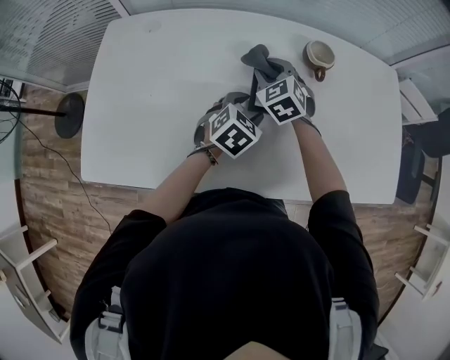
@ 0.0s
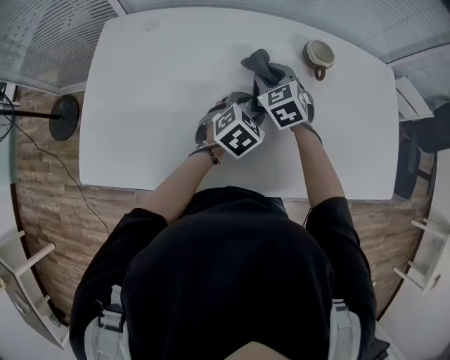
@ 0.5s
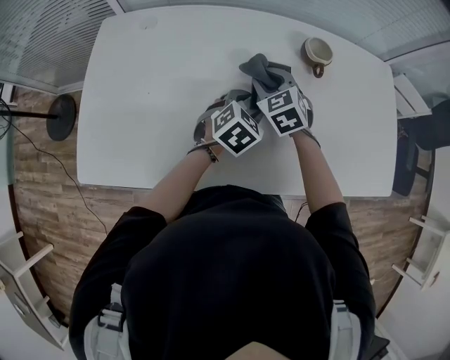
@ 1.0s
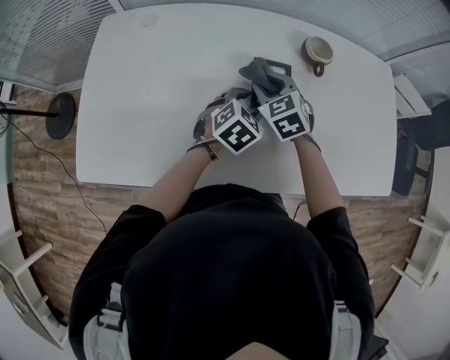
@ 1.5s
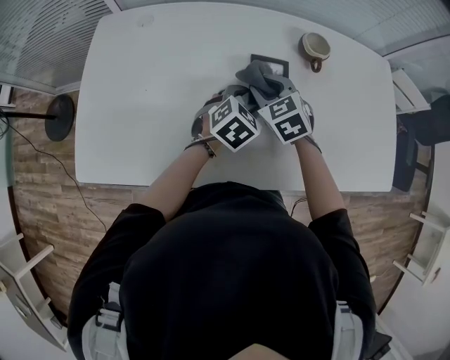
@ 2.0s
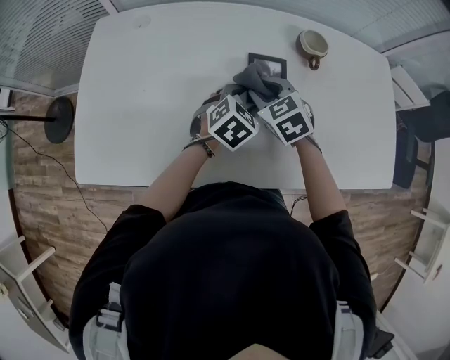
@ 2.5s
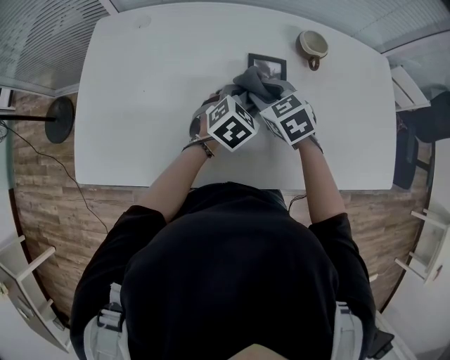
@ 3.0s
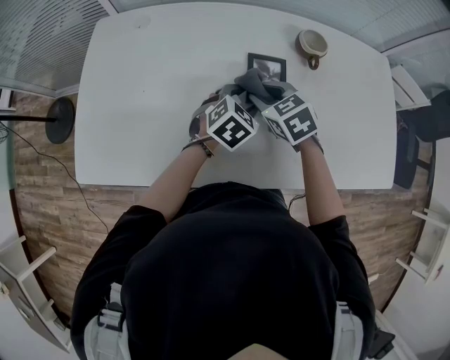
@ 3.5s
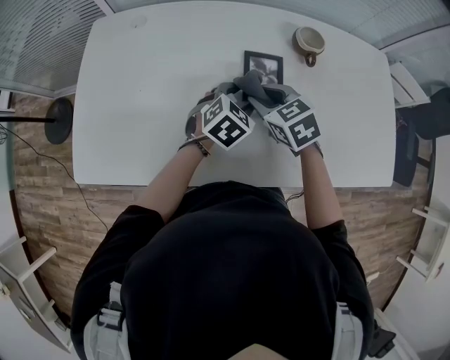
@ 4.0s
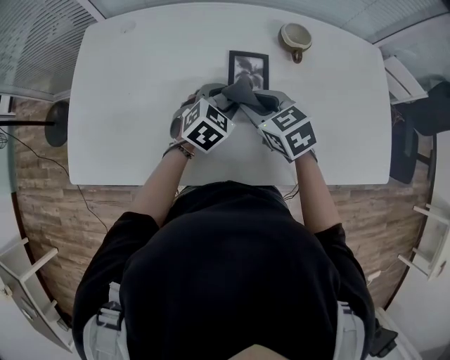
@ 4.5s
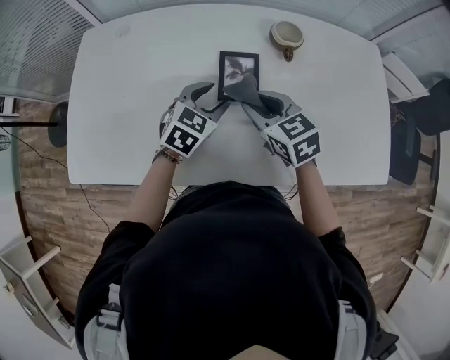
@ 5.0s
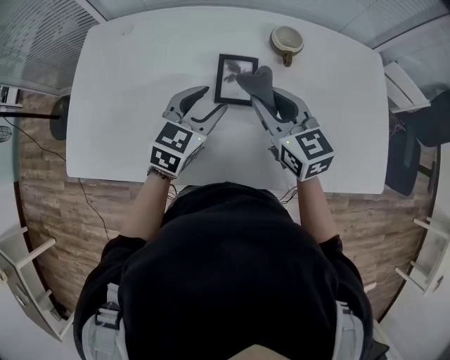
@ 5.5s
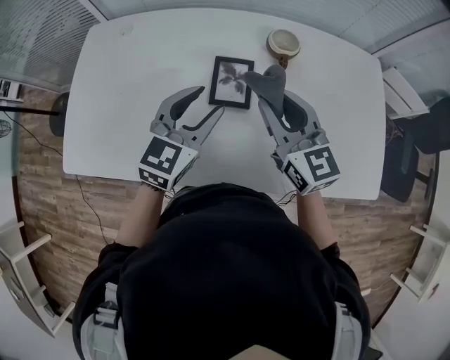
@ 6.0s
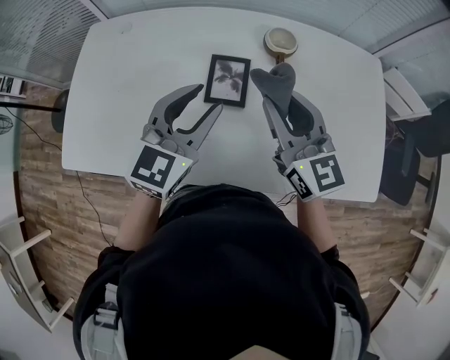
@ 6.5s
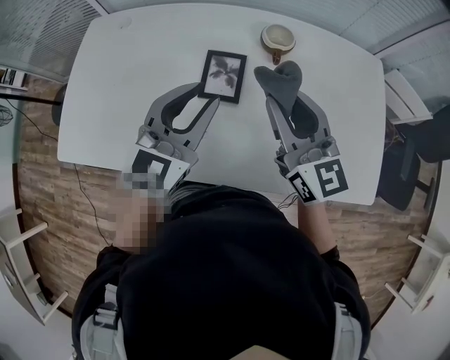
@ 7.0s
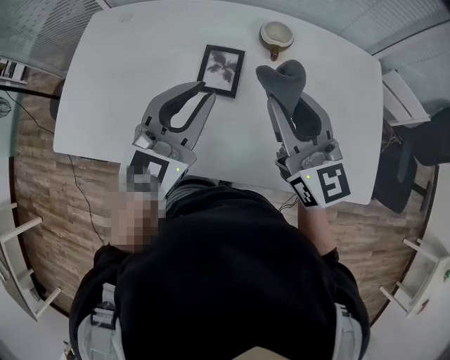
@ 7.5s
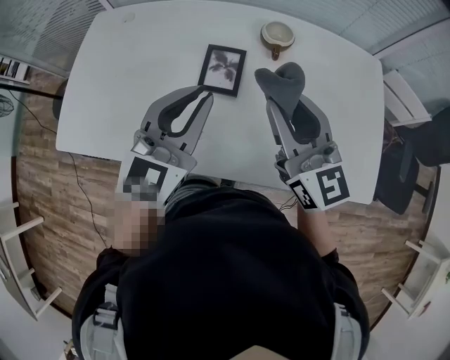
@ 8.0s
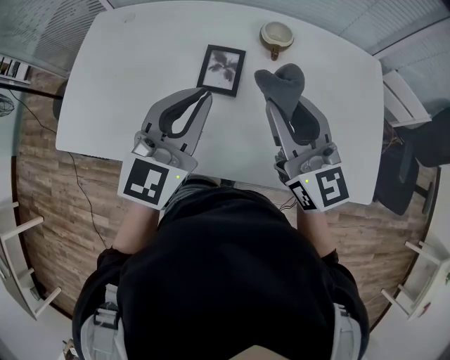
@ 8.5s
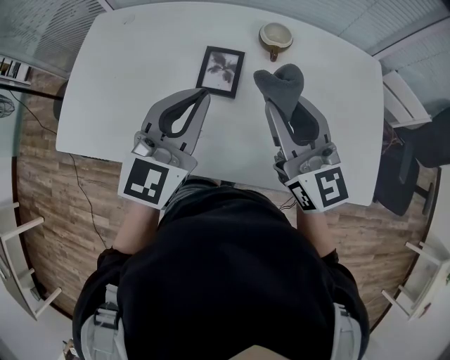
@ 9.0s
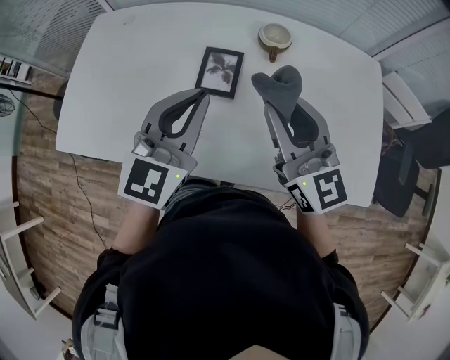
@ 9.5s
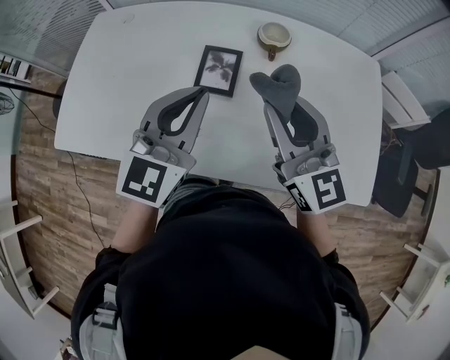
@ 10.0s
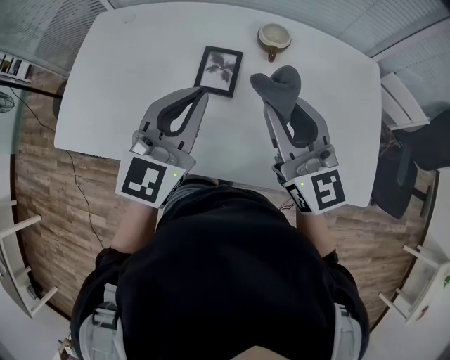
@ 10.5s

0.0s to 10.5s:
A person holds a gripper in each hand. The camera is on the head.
0.0s to 2.0s: The right gripper heads backward, covering some 10 cm.
2.0s to 4.0s: There are only small adjustments of the grippers.
4.0s to 6.5s: The right gripper goes roughly 20 cm upward and to the right, and tilts its fingers roughly 40 degrees upward. Meanwhile the left gripper moves upward, roughly 20 cm, and angles its fingers upward, by approximately 30 degrees.
6.5s to 8.5s: The right gripper changes place by some 5 cm; the left gripper changes place by roughly 5 cm, and closes.
8.5s to 10.5s: Both grippers stay about where they are.

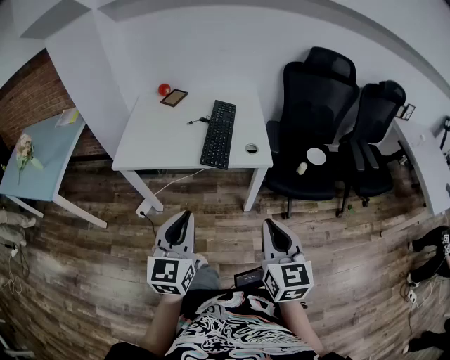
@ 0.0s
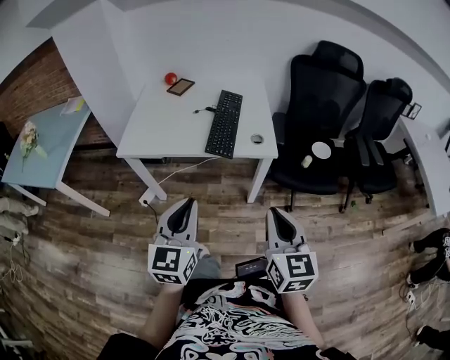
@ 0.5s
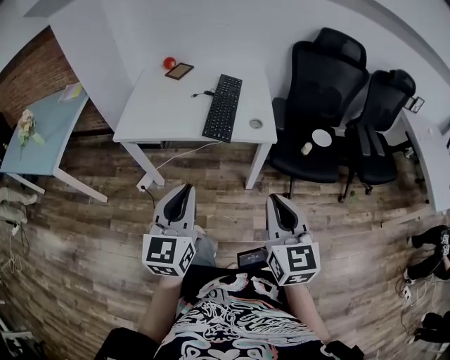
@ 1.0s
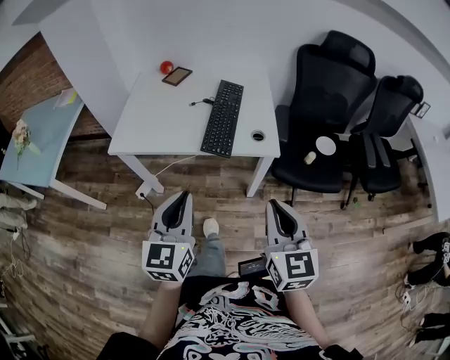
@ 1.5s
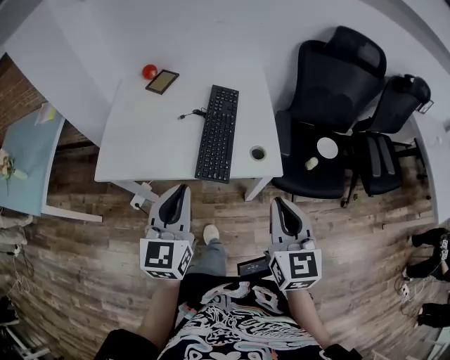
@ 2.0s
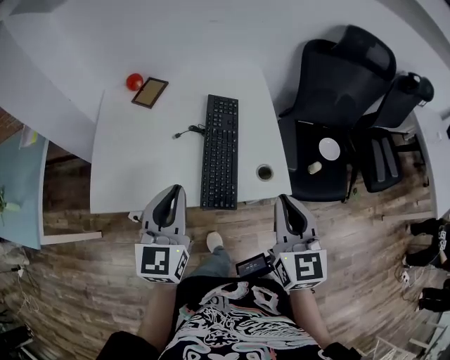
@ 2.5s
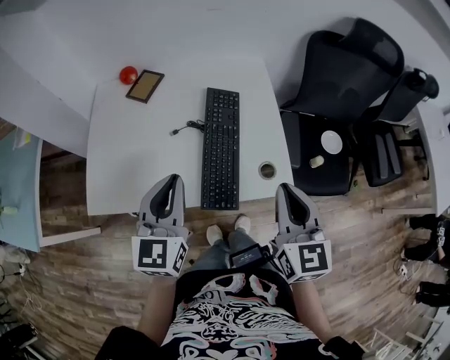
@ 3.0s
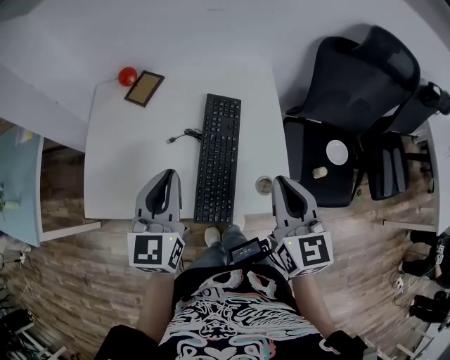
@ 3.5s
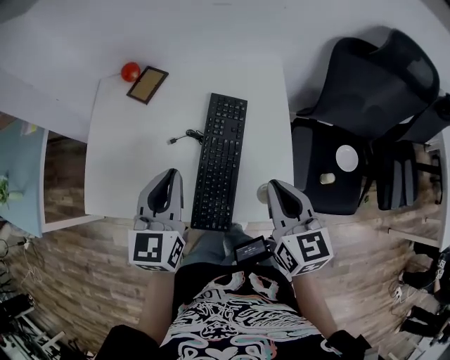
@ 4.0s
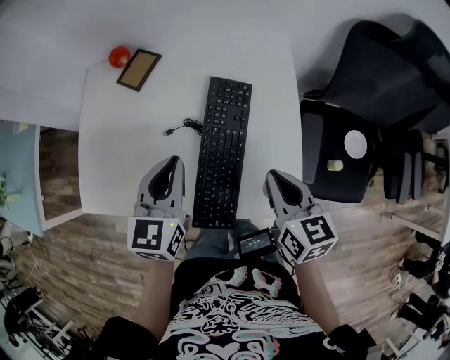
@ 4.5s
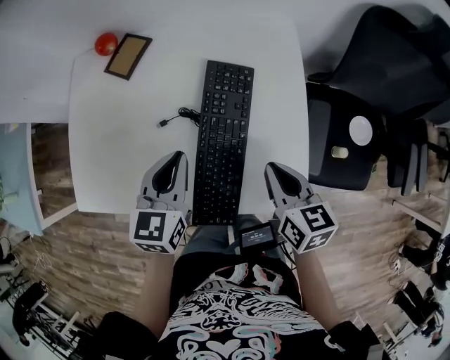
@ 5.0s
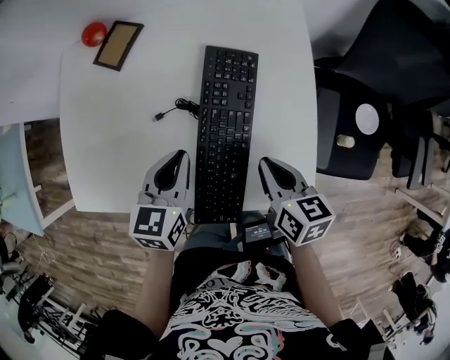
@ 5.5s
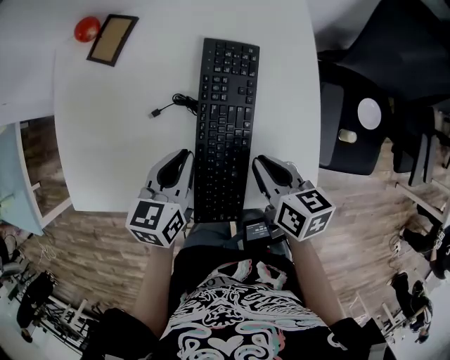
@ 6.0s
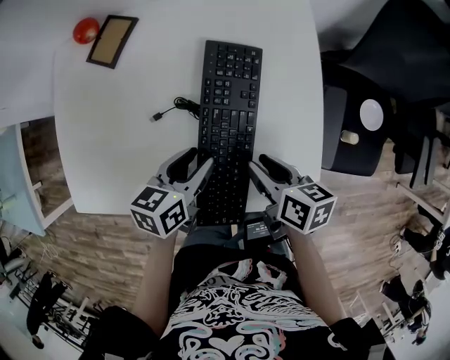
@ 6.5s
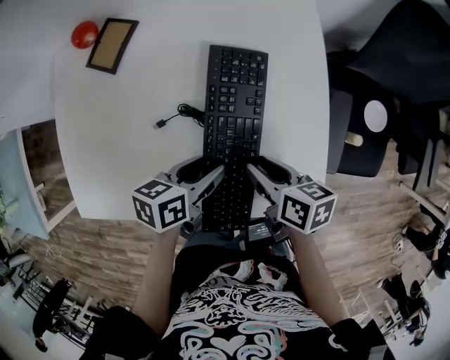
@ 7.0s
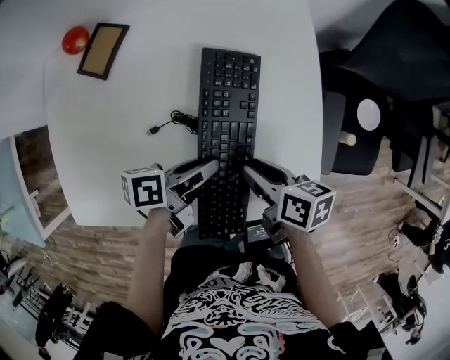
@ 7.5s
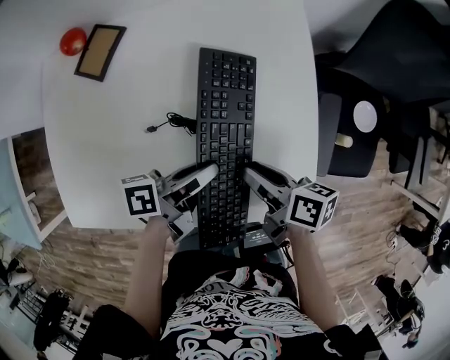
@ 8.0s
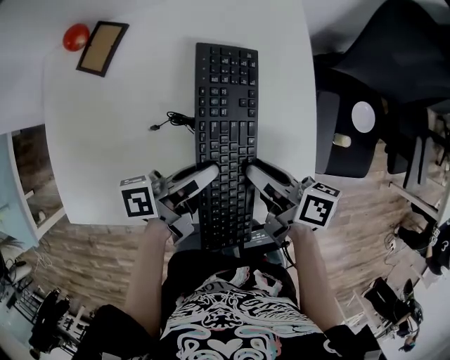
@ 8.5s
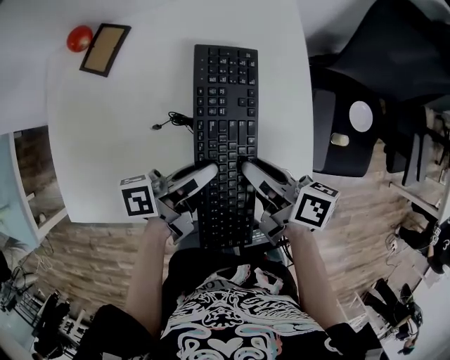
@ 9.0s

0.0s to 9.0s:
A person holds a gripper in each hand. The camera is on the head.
0.0s to 2.0s: The two grippers go roughly 20 cm forward.
2.0s to 4.5s: Both grippers move forward, about 30 cm. The right gripper rotates some 30 degrees.
4.5s to 7.0s: The right gripper shifts roughly 15 cm downward and to the left, swivels approximately 40 degrees, and opens its fingers; the left gripper shifts about 15 cm downward, rotates some 50 degrees, and opens up.
7.0s to 9.0s: The right gripper changes its angle by roughly 20 degrees. Meanwhile the left gripper angles its fingers upward, by roughly 30 degrees, and closes.

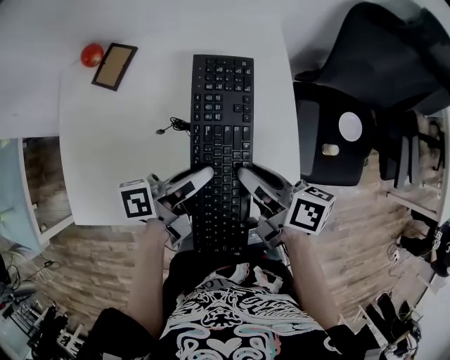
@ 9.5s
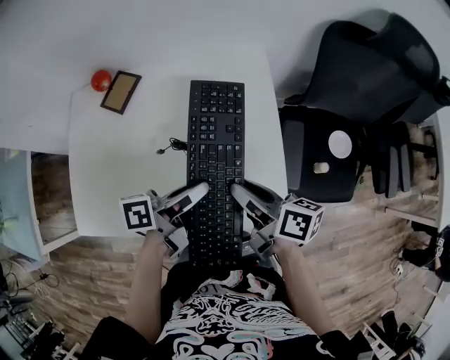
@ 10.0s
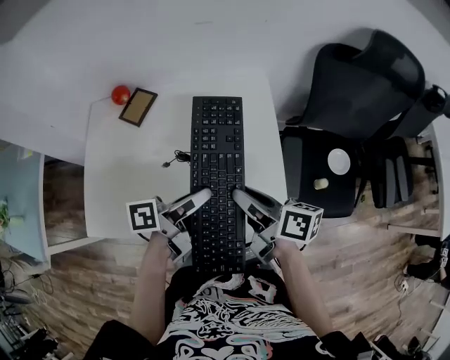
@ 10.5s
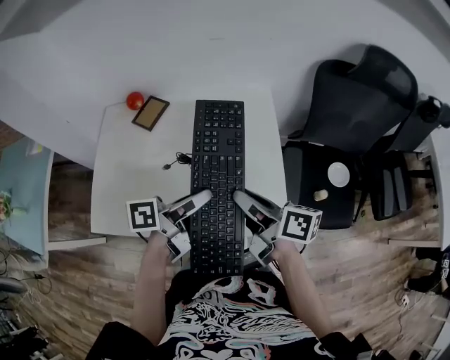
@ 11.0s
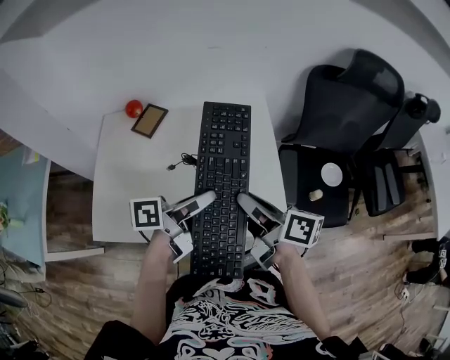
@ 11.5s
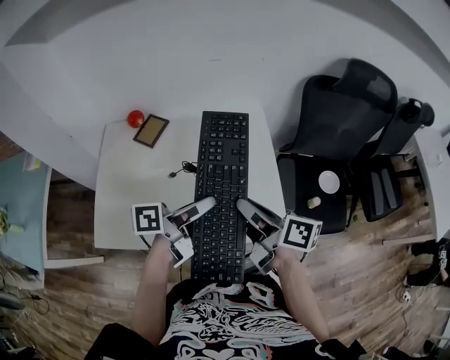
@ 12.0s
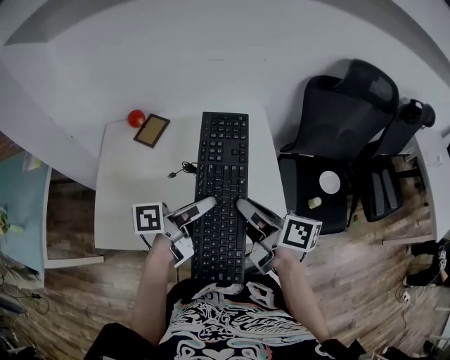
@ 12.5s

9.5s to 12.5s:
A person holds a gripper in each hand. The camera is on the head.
9.5s to 12.5s: The grippers stay close to where they were, moving slightly.

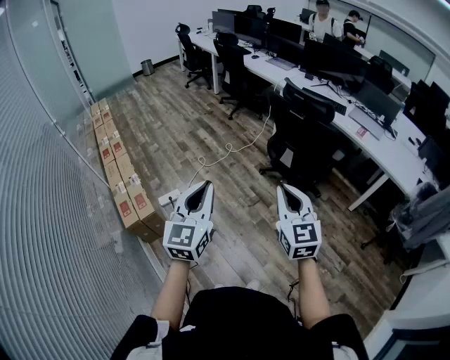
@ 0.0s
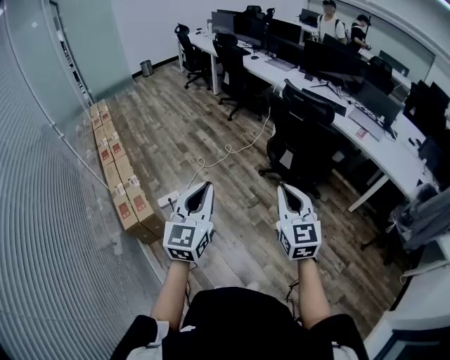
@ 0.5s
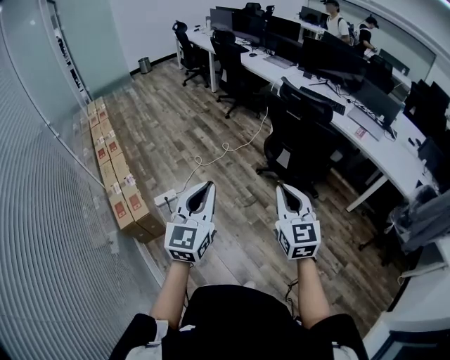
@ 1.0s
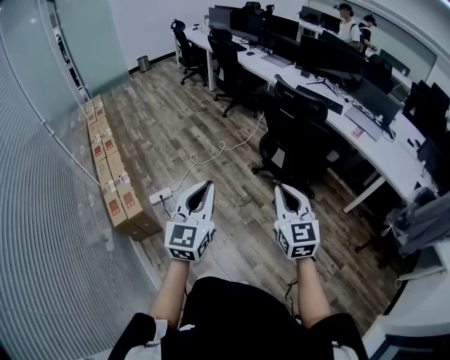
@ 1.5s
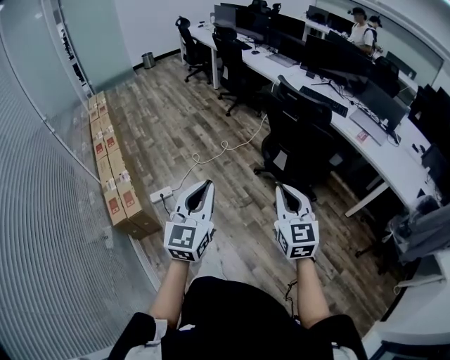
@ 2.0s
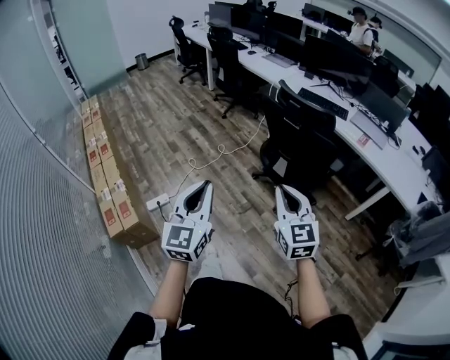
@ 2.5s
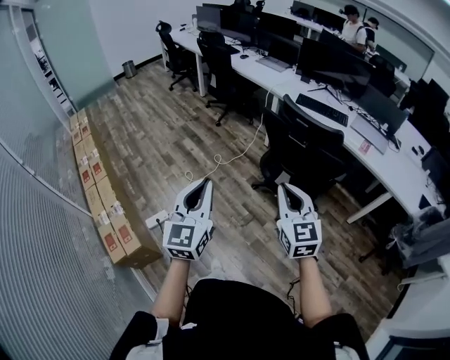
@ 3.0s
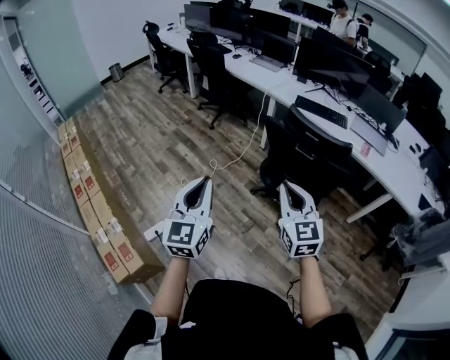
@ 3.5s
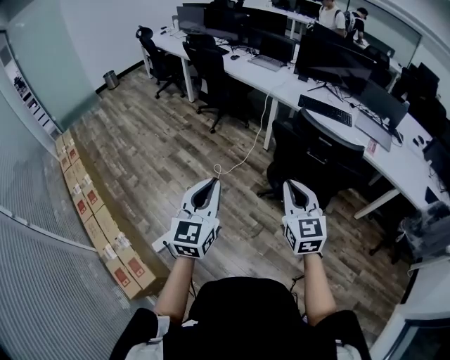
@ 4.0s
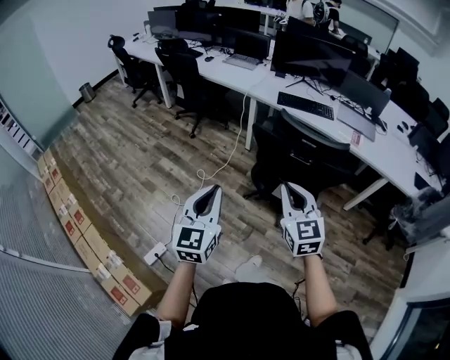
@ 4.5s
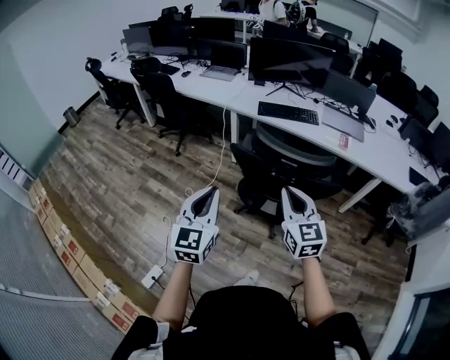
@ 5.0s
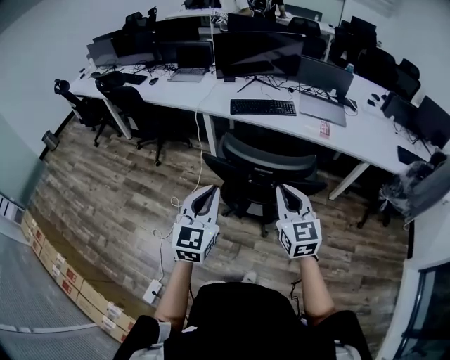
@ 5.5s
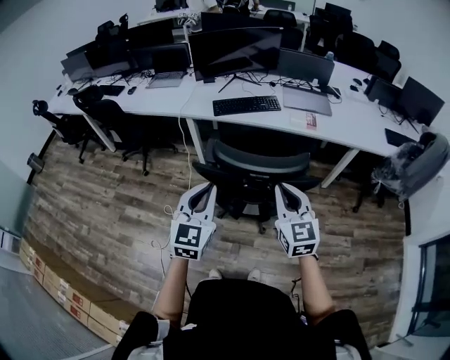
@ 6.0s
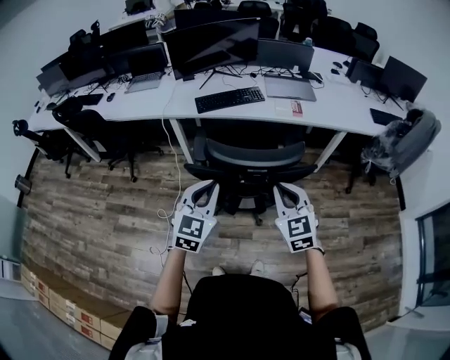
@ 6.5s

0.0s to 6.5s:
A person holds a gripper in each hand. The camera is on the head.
0.0s to 2.0s: Both grippers move to the right and forward, approximately 10 cm.
2.0s to 4.5s: Both grippers move forward, some 35 cm. The left gripper swivels approximately 20 degrees.
4.5s to 6.5s: The right gripper shifts by about 20 cm, and turns by approximately 30 degrees. Meanwhile the left gripper moves some 30 cm, and rotates roughly 40 degrees.
